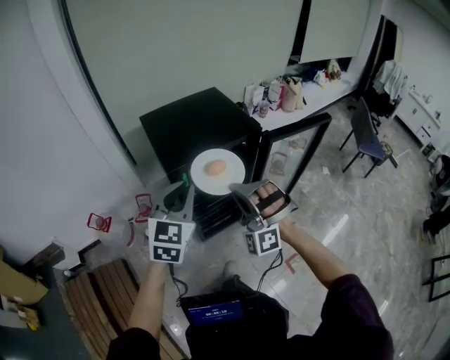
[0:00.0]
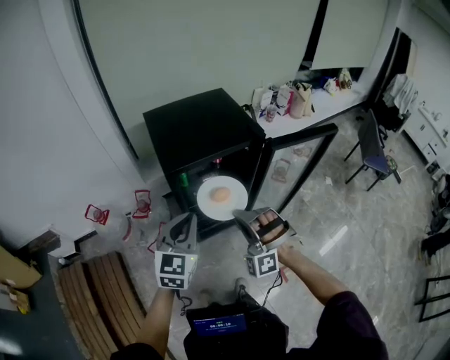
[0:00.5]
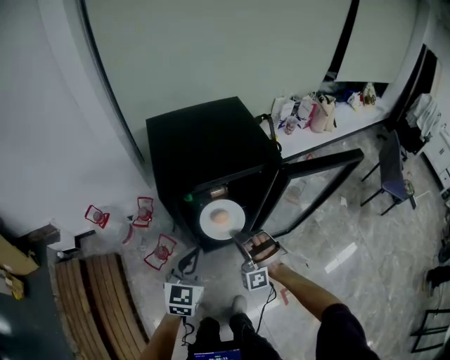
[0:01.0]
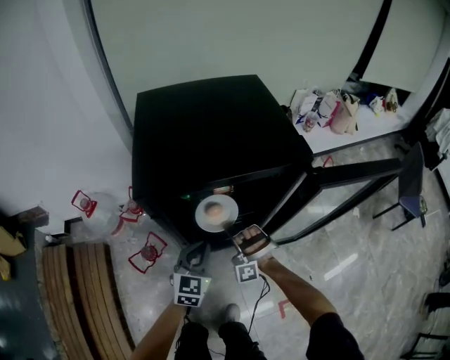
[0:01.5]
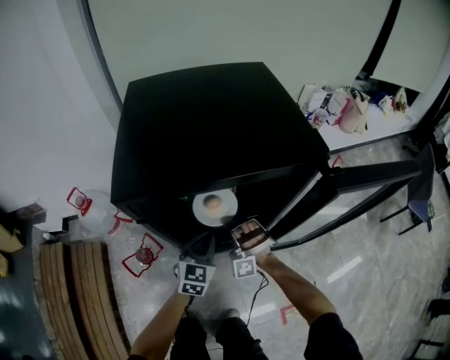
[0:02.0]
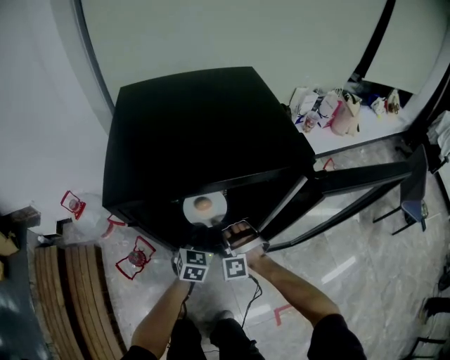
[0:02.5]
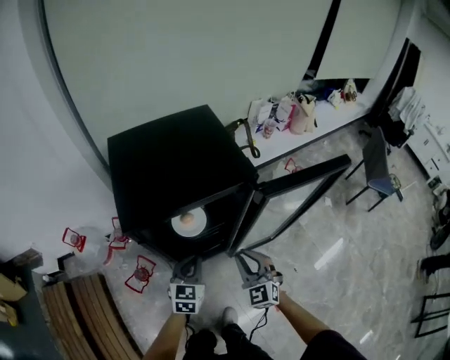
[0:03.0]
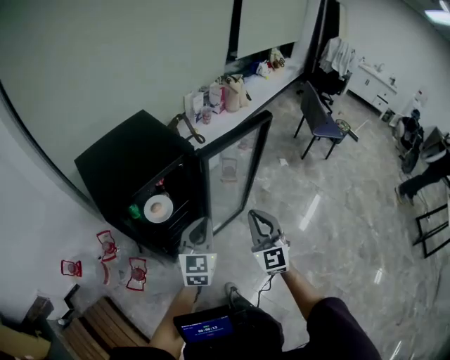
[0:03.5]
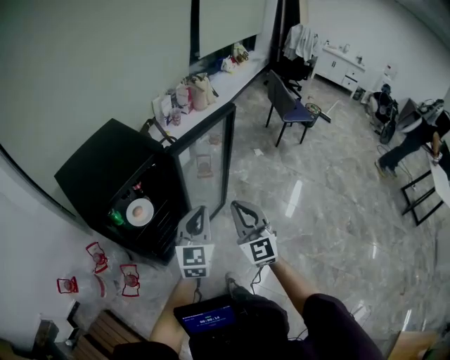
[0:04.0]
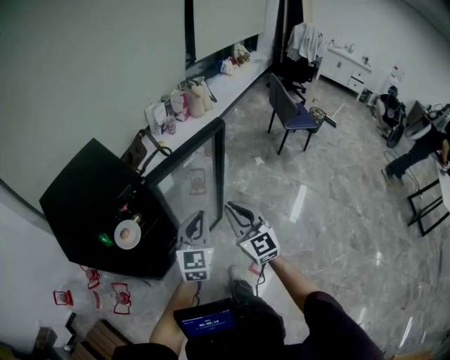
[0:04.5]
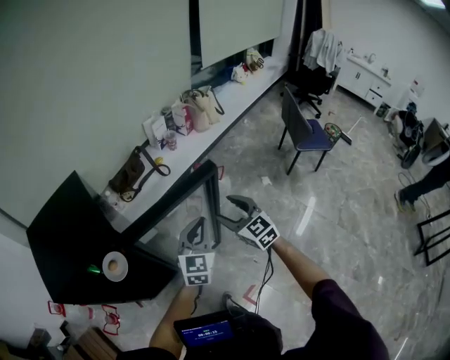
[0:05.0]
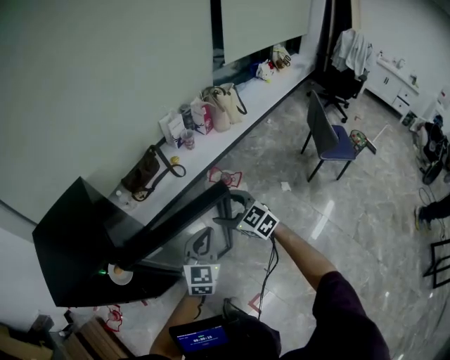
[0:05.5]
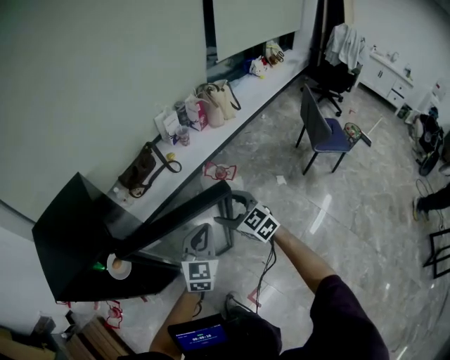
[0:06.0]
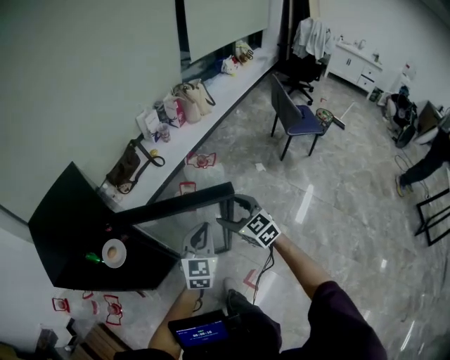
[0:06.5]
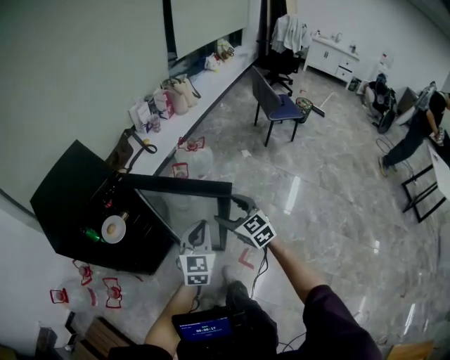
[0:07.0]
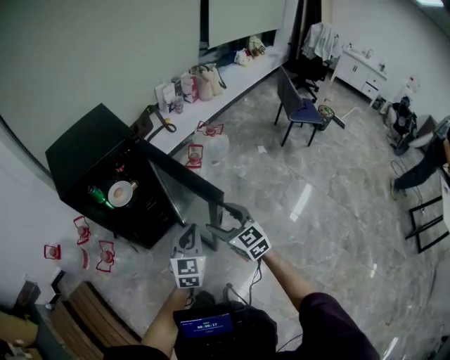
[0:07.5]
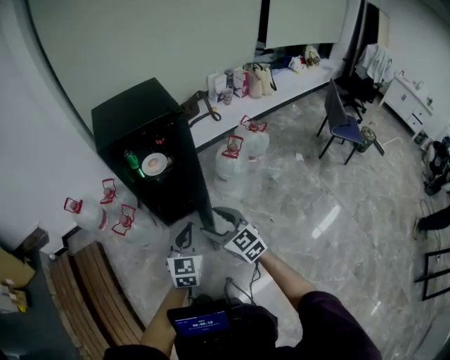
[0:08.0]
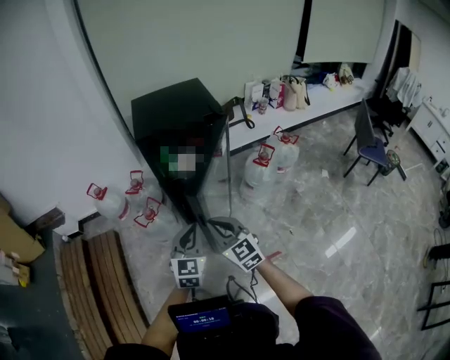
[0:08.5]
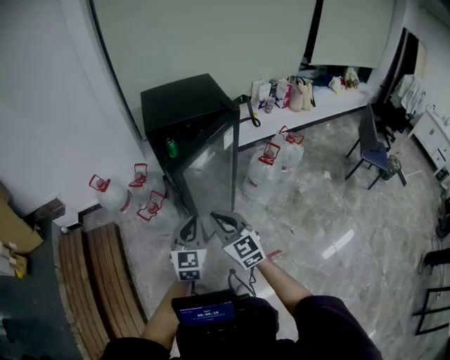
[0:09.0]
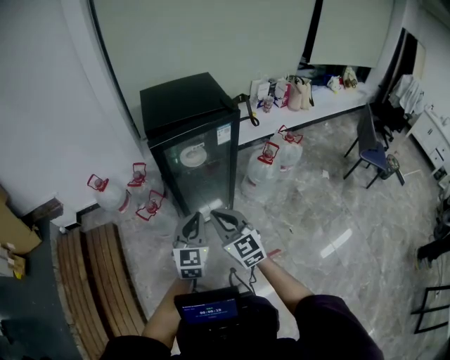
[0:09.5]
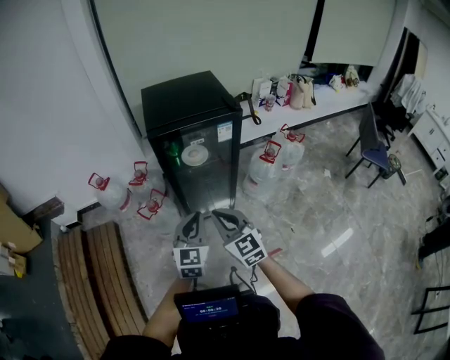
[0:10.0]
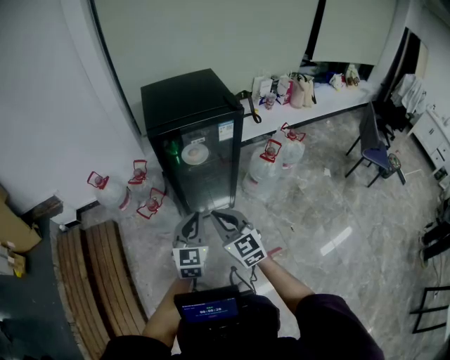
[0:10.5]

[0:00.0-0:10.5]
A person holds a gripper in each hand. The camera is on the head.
0:00.0 to 0:02.0: The left gripper heads downward, covering about 40 cm. Meanwhile the right gripper is displaced downward and forward by about 40 cm.
0:02.0 to 0:04.0: The left gripper goes approximately 30 cm upward, and swivels about 40 degrees; the right gripper shifts by about 50 cm, and rolls clockwise, seen from behind, by roughly 80 degrees.
0:04.0 to 0:06.5: The right gripper changes place by roughly 30 cm, rotates roughly 30 degrees, and opens up, while the left gripper moves approximately 30 cm.
0:06.5 to 0:08.5: The pair of grippers is taken roughly 50 cm. The right gripper changes its angle by some 30 degrees, and closes its fingers; the left gripper rotates roughly 30 degrees.
0:08.5 to 0:10.5: The grippers make only small movements.

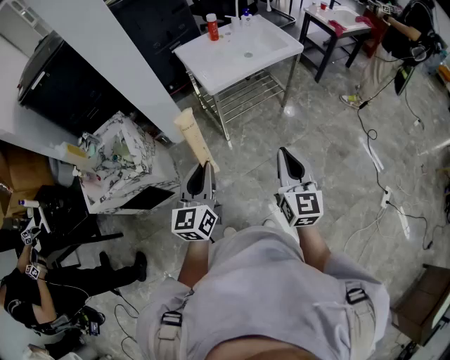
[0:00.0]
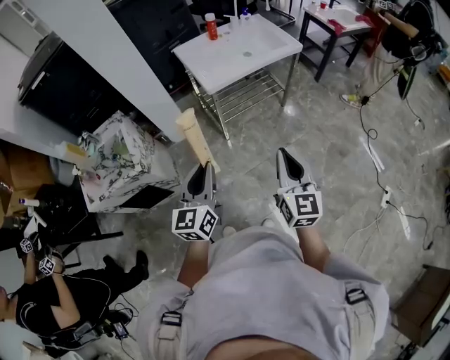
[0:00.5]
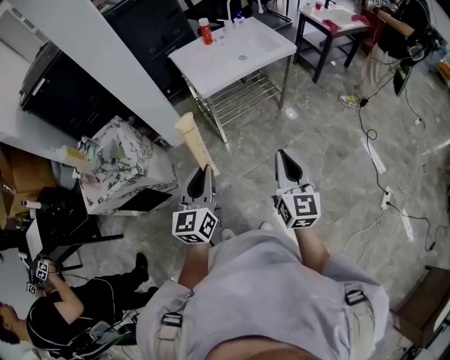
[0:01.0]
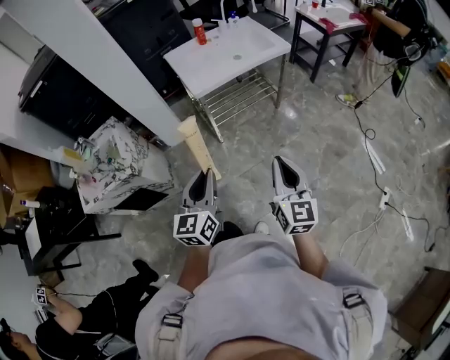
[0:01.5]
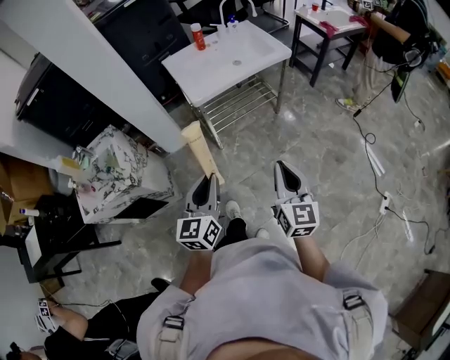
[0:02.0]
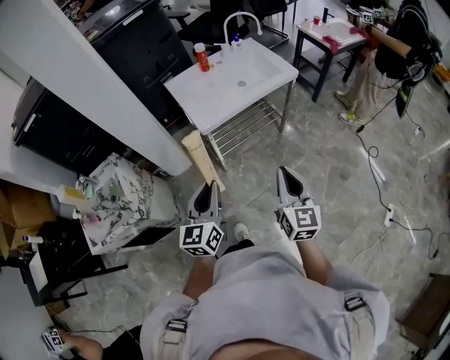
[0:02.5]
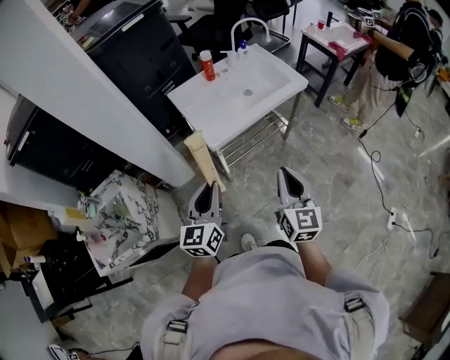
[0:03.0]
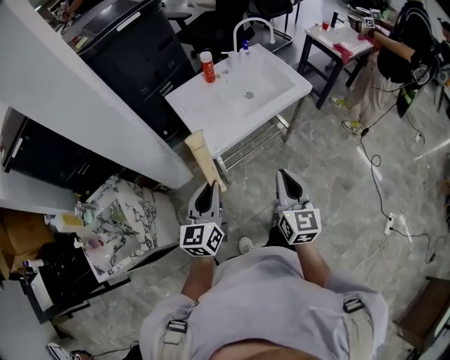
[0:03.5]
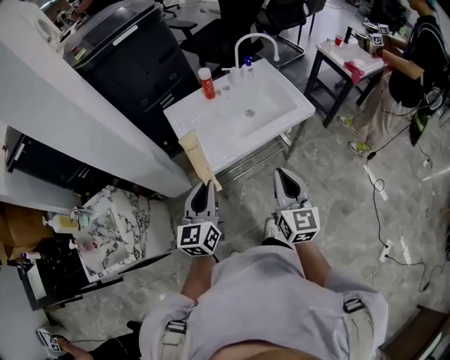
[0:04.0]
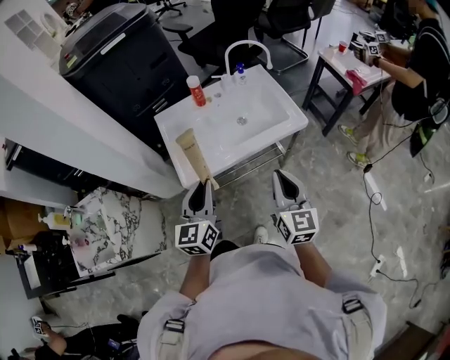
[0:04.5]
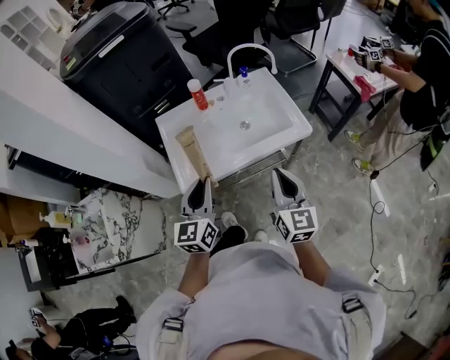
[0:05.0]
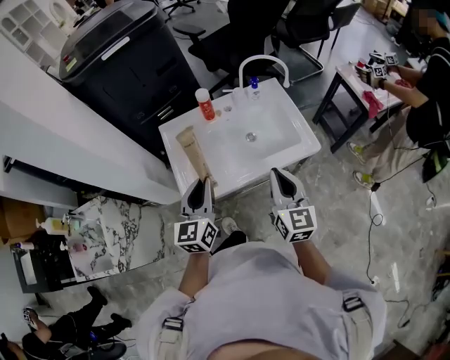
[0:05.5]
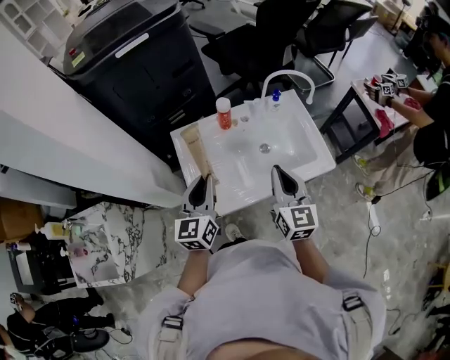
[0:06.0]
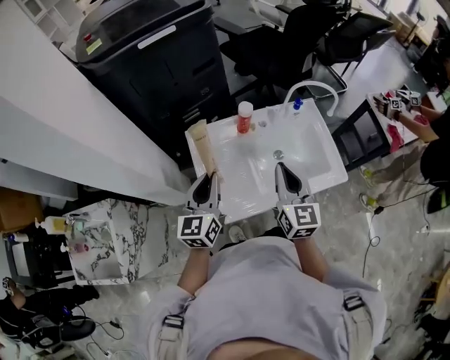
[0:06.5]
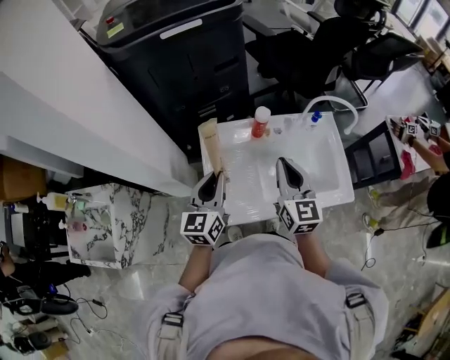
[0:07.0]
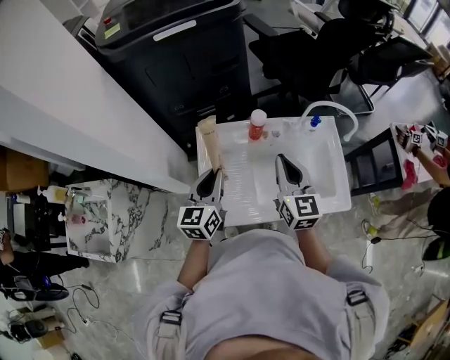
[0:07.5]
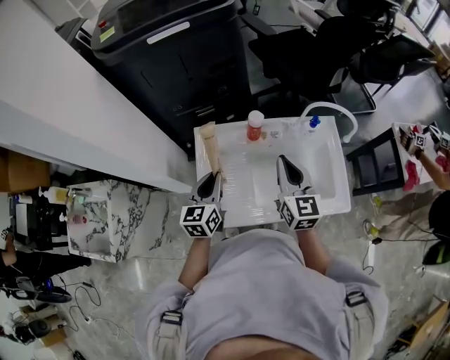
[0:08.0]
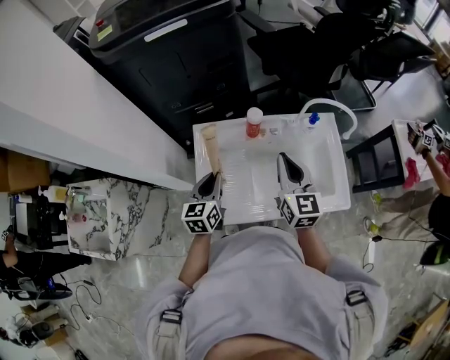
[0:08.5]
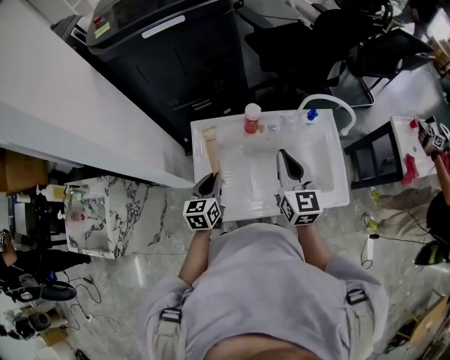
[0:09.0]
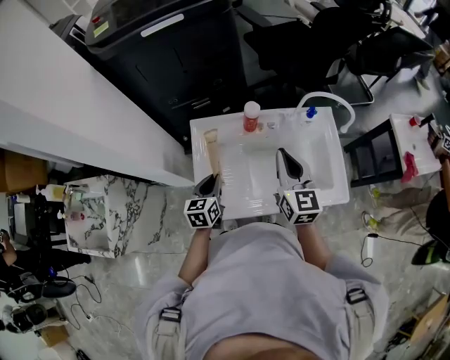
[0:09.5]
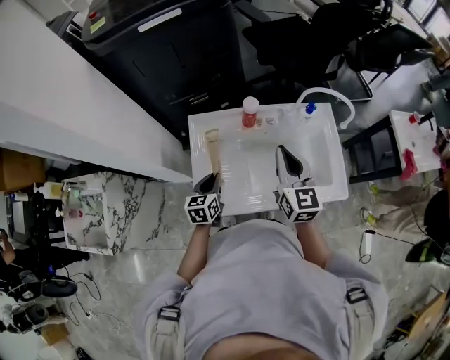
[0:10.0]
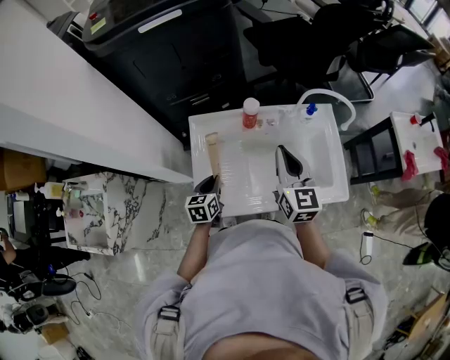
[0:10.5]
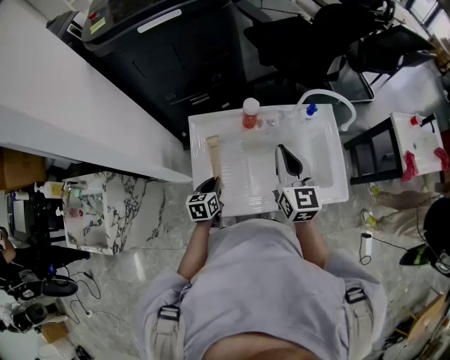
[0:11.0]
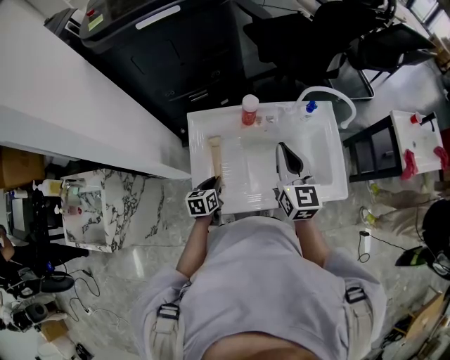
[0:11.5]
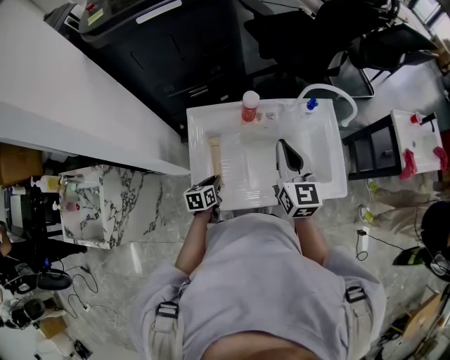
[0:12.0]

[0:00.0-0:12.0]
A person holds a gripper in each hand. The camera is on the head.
0:00.0 to 0:02.0: Both grippers travel together to the right, roughly 10 cm.
0:02.0 to 0:04.0: Both grippers move forward, about 35 cm.
0:04.0 to 0:06.0: Both grippers travel together forward, approximately 25 cm.
0:06.0 to 0:08.0: The left gripper moves forward and downward, about 10 cm. The right gripper is displaced forward by roughly 15 cm.
0:08.0 to 0:10.0: The left gripper is displaced downward by approximately 10 cm.
0:10.0 to 0:12.0: The left gripper goes about 10 cm downward.

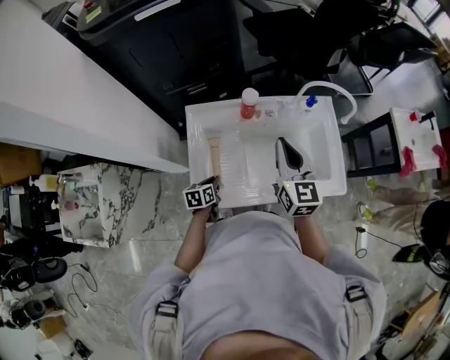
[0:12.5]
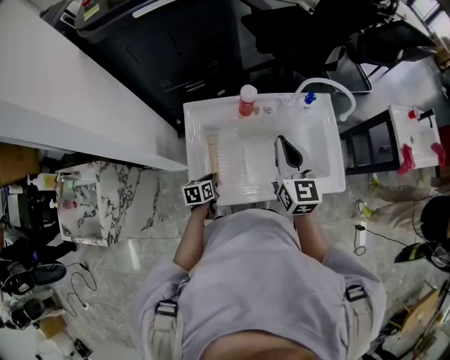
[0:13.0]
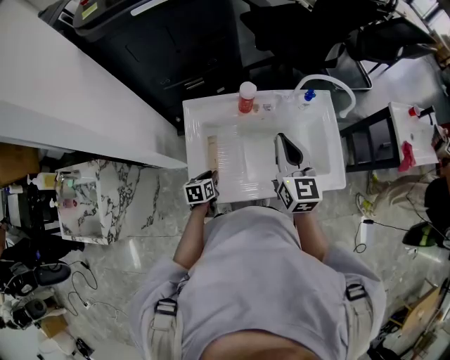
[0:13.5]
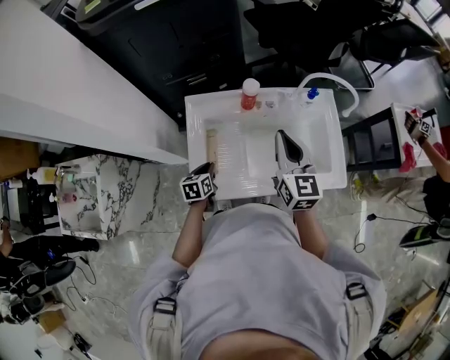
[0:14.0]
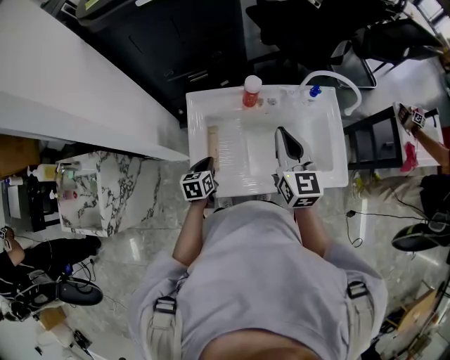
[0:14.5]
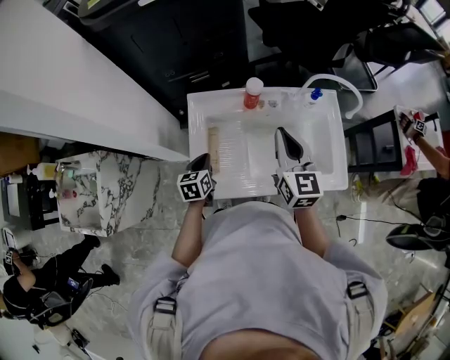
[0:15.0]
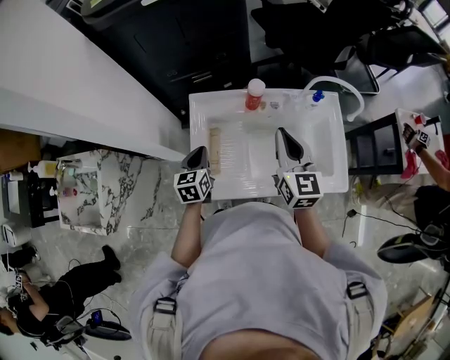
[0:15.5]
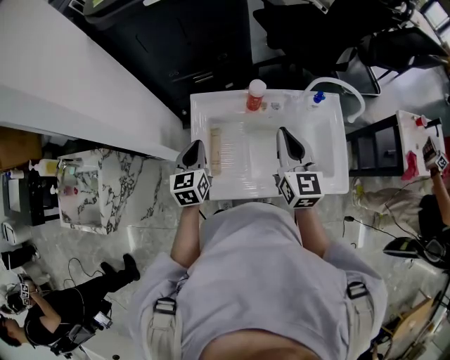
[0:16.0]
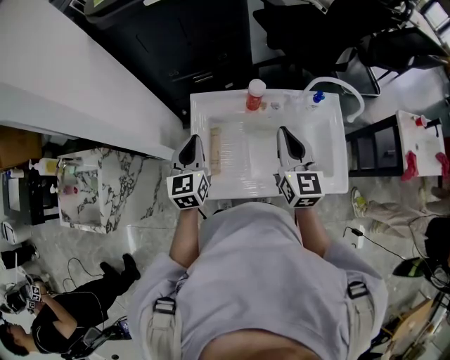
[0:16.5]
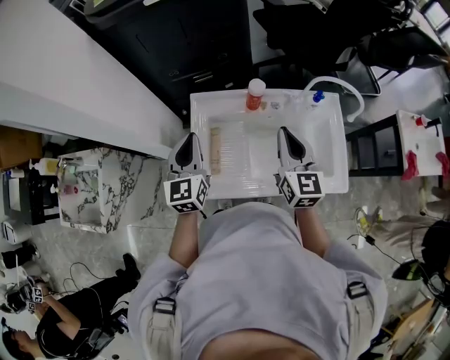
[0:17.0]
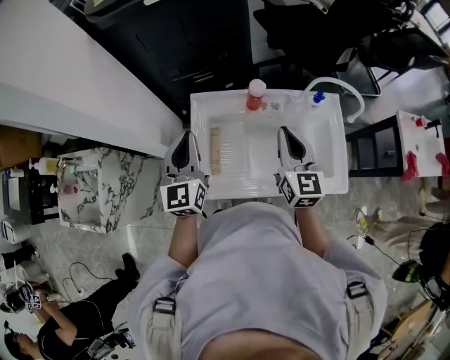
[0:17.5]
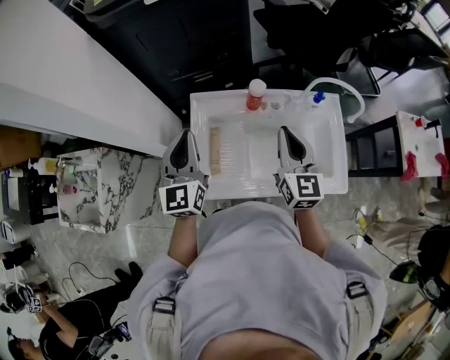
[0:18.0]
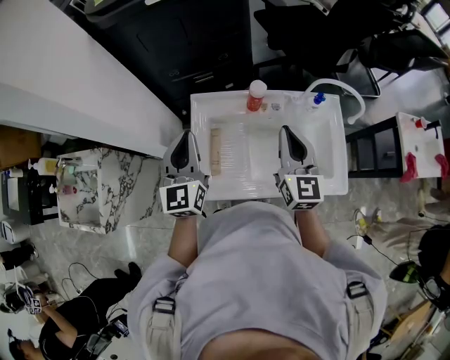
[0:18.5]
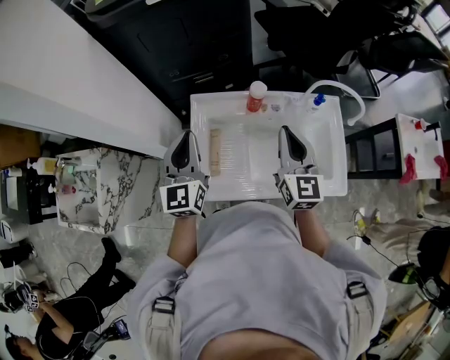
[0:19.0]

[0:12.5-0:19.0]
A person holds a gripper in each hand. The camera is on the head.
0:12.5 to 0:14.5: The left gripper goes approximately 5 cm upward.
0:14.5 to 0:17.0: The left gripper moves upward, approximately 25 cm, and angles its fingers upward, by about 30 degrees.
0:17.0 to 0:19.0: The grippers stay close to where they were, moving slightly.
